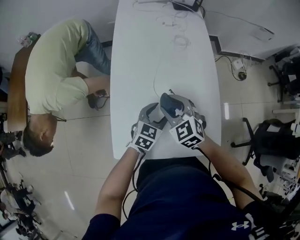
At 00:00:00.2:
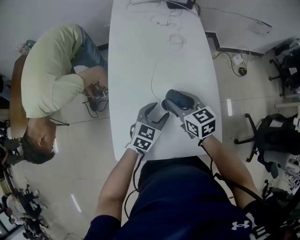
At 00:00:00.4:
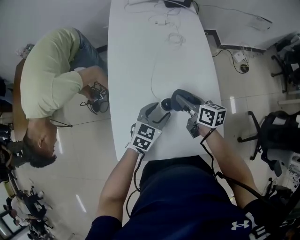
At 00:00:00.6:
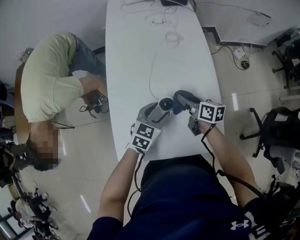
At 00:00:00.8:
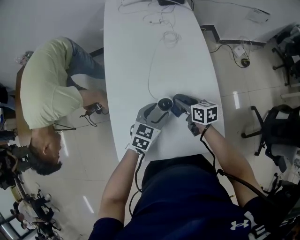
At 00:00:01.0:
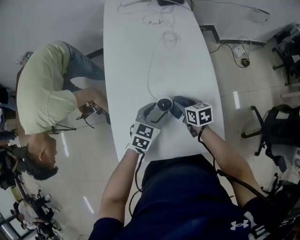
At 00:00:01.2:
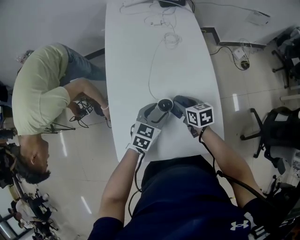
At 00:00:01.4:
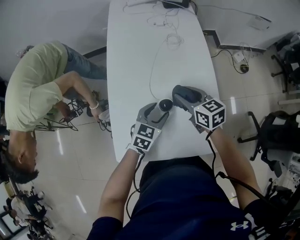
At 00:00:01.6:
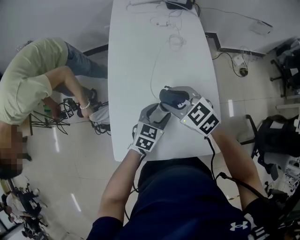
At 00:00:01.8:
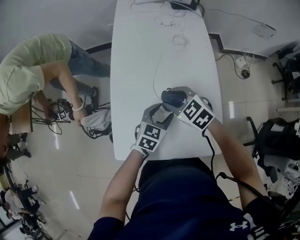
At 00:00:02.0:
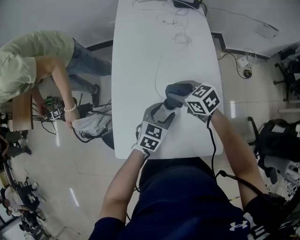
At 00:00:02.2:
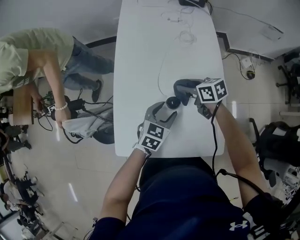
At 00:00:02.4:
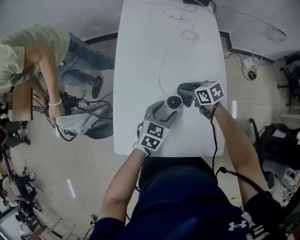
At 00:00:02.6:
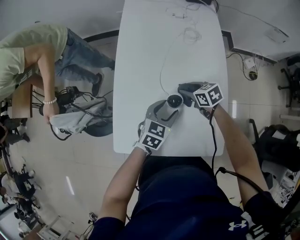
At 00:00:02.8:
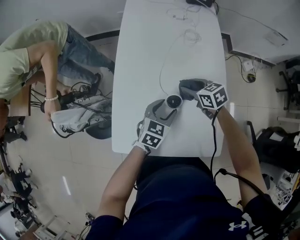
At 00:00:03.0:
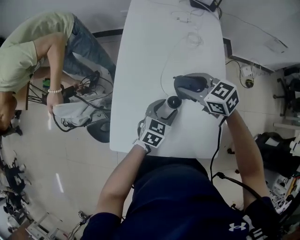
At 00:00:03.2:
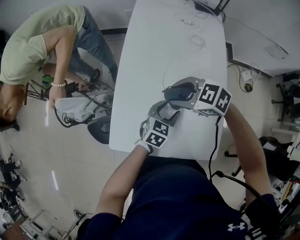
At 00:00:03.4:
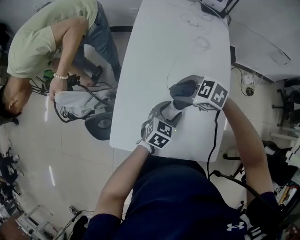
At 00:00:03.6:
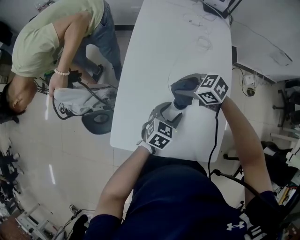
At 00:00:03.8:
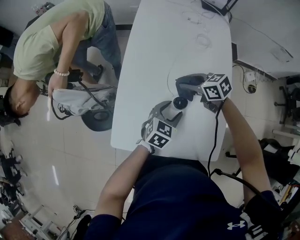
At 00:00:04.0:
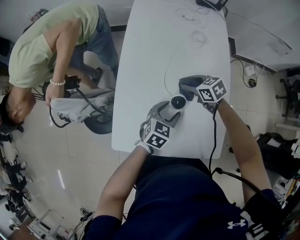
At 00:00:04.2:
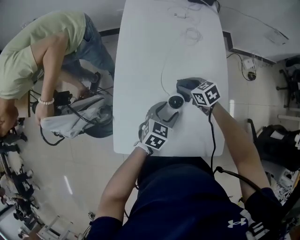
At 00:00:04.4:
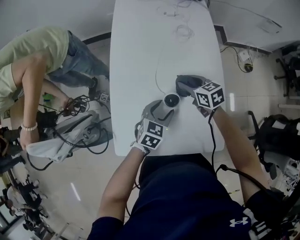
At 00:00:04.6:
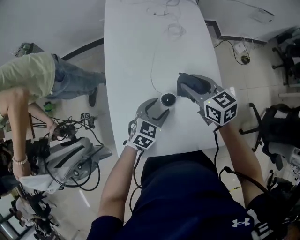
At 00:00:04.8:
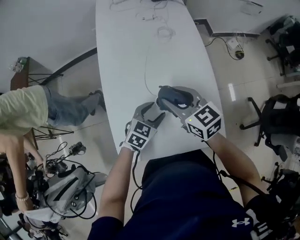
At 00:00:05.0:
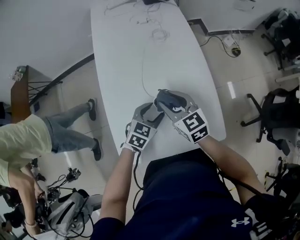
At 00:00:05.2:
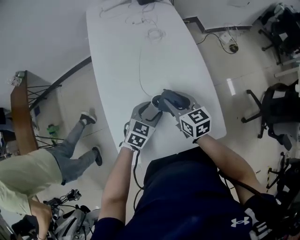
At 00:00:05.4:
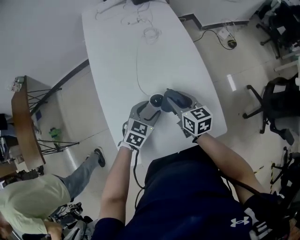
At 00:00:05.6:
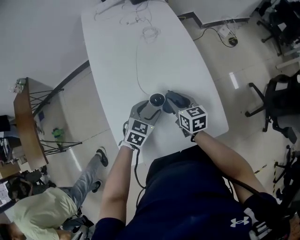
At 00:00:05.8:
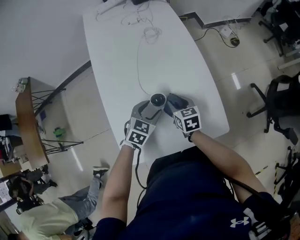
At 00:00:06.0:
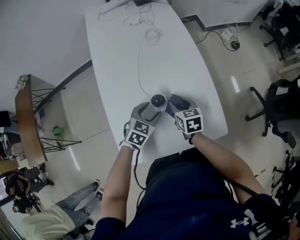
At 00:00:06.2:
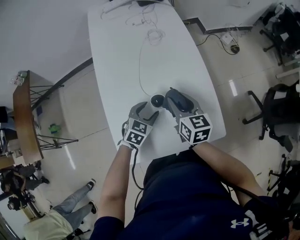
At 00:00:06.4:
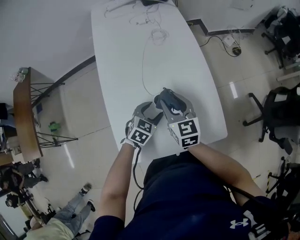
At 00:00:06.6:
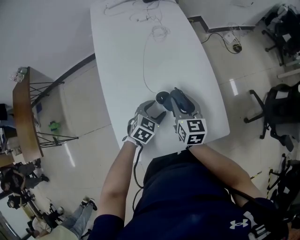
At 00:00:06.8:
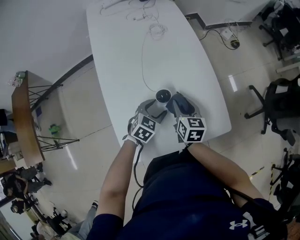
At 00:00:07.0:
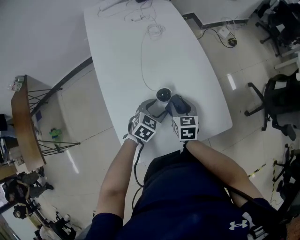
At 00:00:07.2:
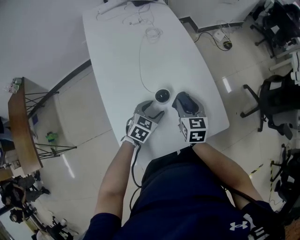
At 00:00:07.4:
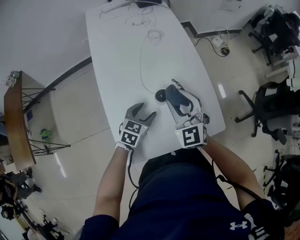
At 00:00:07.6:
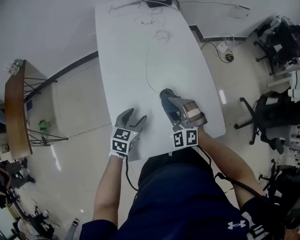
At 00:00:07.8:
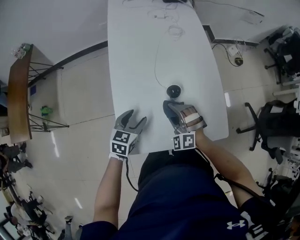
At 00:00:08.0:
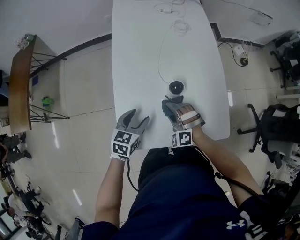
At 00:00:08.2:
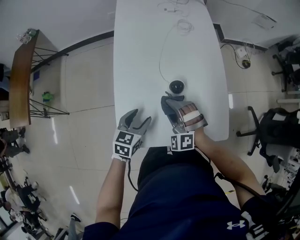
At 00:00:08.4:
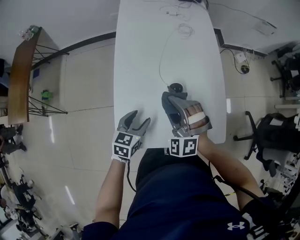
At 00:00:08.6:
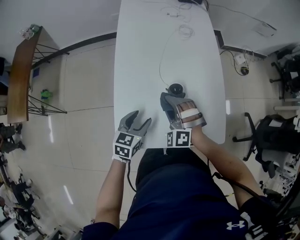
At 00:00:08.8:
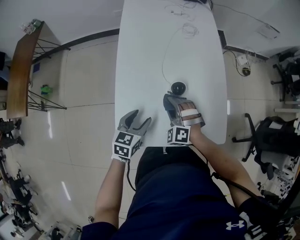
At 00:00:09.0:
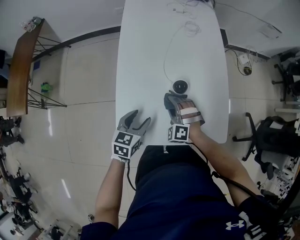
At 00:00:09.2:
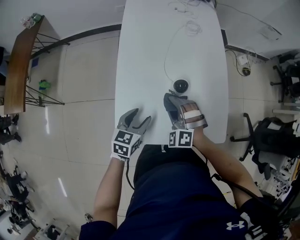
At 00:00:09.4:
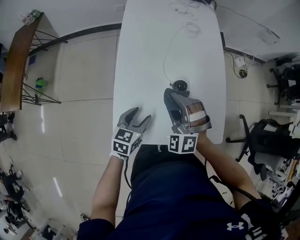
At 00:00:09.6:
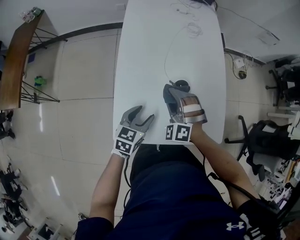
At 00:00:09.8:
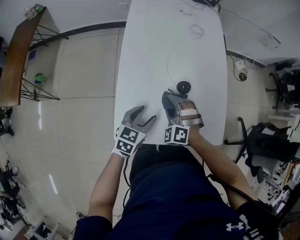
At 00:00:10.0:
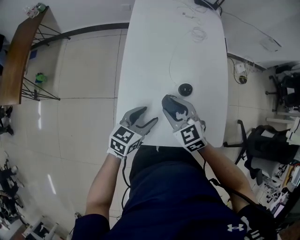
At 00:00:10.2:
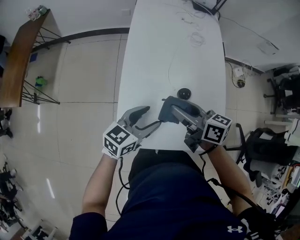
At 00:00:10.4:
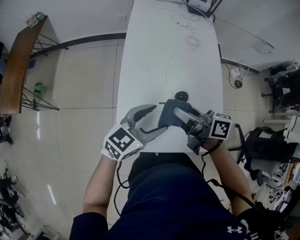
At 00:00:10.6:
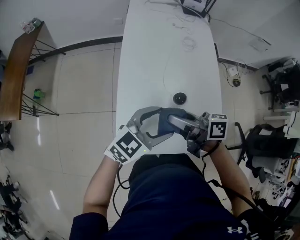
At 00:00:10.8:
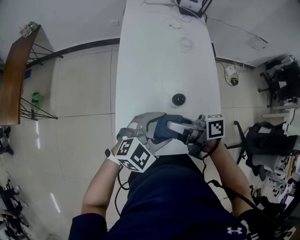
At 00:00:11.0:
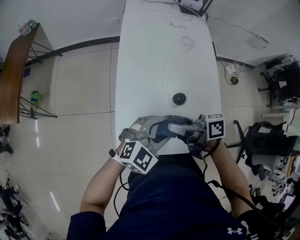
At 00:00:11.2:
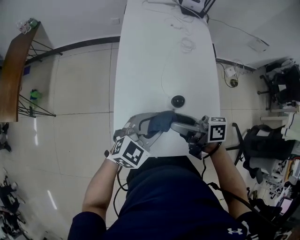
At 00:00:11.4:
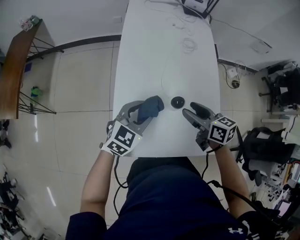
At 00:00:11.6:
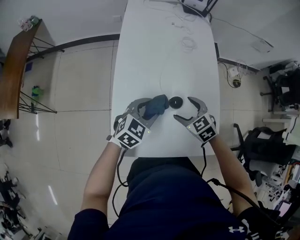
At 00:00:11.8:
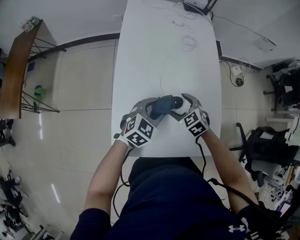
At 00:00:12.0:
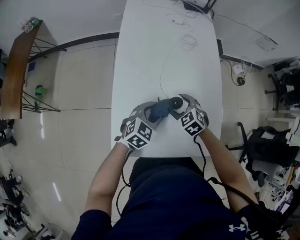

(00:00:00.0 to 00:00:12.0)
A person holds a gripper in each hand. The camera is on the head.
00:00:00.0 - 00:00:01.6: The right gripper travels downward and back again, about 15 cm each way.
00:00:01.6 - 00:00:03.0: The right gripper travels downward and back again, roughly 15 cm each way.
00:00:03.0 - 00:00:04.4: The right gripper is displaced downward by about 10 cm, and changes its angle by roughly 30 degrees.
00:00:04.4 - 00:00:06.0: The right gripper heads backward and to the right, covering approximately 10 cm, reaches about 15 cm upward, then returns, and rotates approximately 30 degrees.
00:00:06.0 - 00:00:07.6: The left gripper goes roughly 10 cm to the left and backward, and turns by about 20 degrees, while the right gripper goes up and down, approximately 15 cm each way, reversing 3 times, and rolls counterclockwise, seen from behind, by roughly 80 degrees.
00:00:07.6 - 00:00:09.0: The left gripper travels backward by some 5 cm, while the right gripper moves up and down over some 15 cm, changing direction 2 times, and changes its angle by about 20 degrees.
00:00:09.0 - 00:00:10.4: The right gripper swings up and down, about 20 cm each way, with 2 reversals, and rotates around the line of its fingers by about 100 degrees, clockwise from behind; the left gripper moves upward, approximately 15 cm, and turns by some 30 degrees.
00:00:10.4 - 00:00:12.0: The grippers both shift downward by some 15 cm. The left gripper rotates about 30 degrees, and closes up. The right gripper angles its fingers downward, by some 50 degrees, and opens.

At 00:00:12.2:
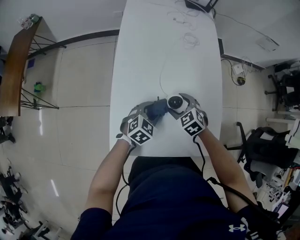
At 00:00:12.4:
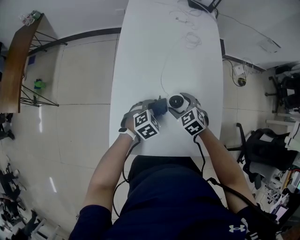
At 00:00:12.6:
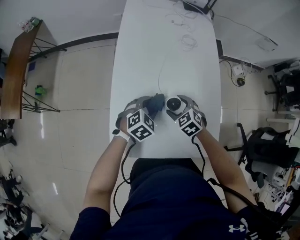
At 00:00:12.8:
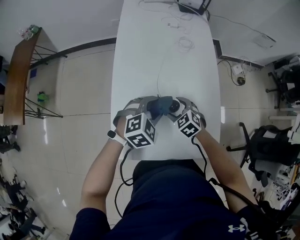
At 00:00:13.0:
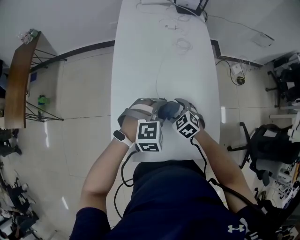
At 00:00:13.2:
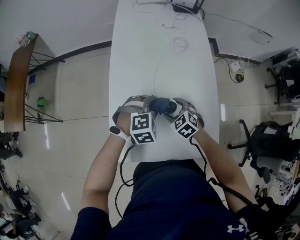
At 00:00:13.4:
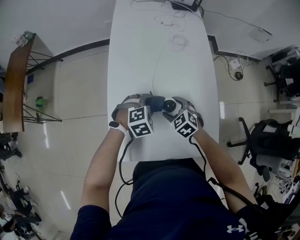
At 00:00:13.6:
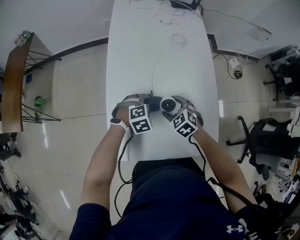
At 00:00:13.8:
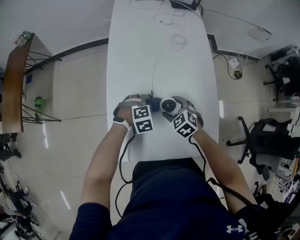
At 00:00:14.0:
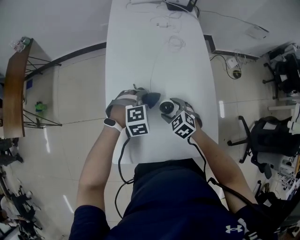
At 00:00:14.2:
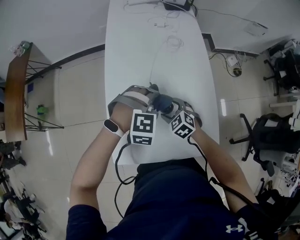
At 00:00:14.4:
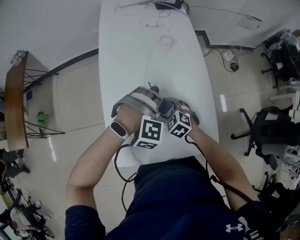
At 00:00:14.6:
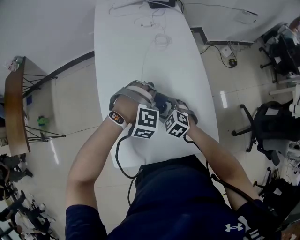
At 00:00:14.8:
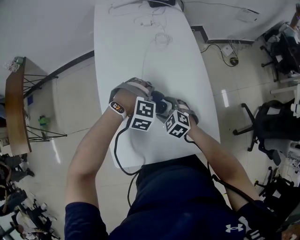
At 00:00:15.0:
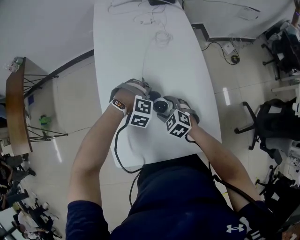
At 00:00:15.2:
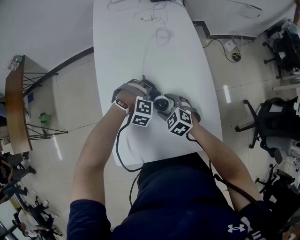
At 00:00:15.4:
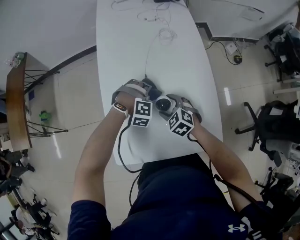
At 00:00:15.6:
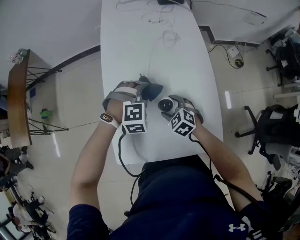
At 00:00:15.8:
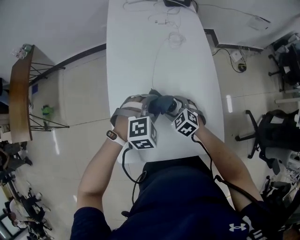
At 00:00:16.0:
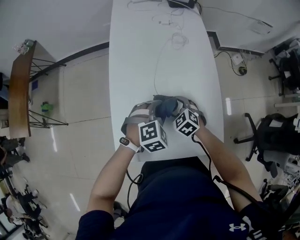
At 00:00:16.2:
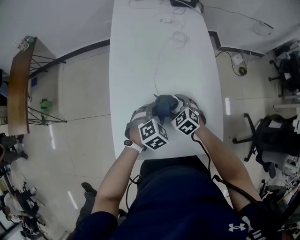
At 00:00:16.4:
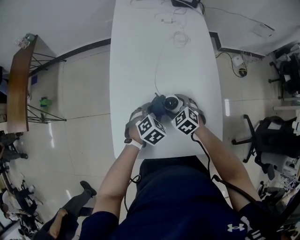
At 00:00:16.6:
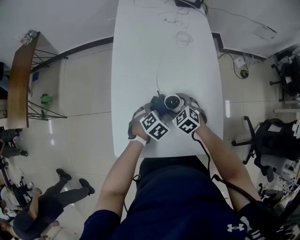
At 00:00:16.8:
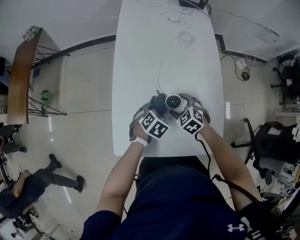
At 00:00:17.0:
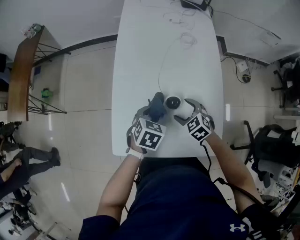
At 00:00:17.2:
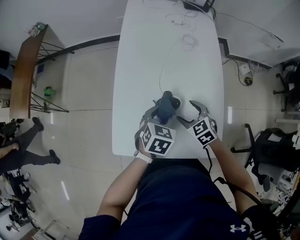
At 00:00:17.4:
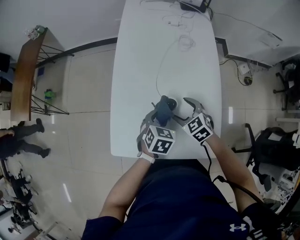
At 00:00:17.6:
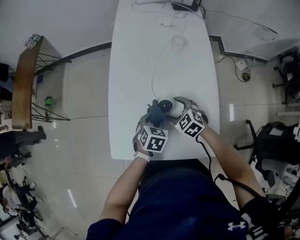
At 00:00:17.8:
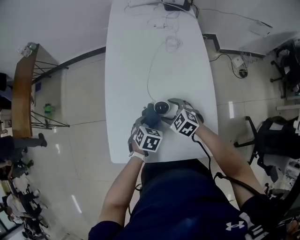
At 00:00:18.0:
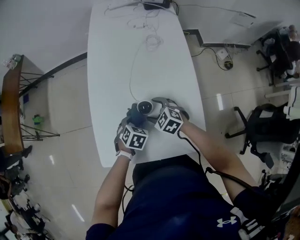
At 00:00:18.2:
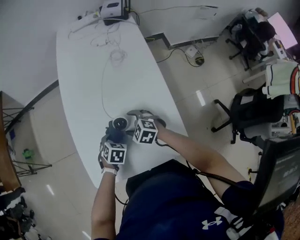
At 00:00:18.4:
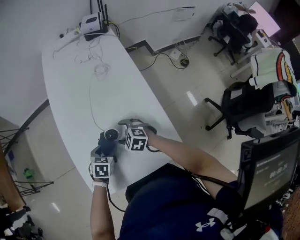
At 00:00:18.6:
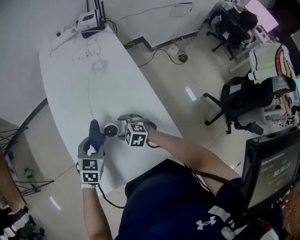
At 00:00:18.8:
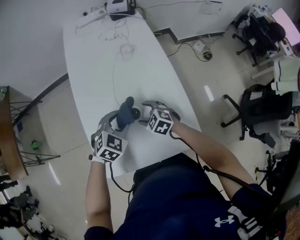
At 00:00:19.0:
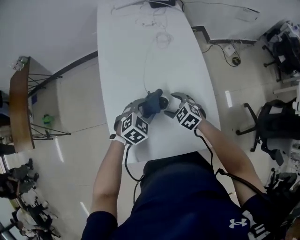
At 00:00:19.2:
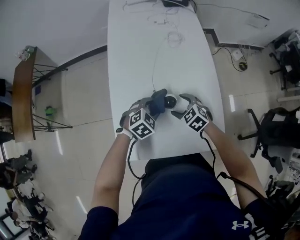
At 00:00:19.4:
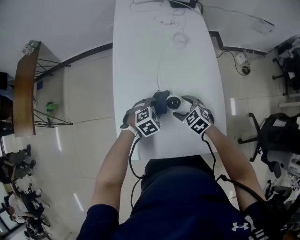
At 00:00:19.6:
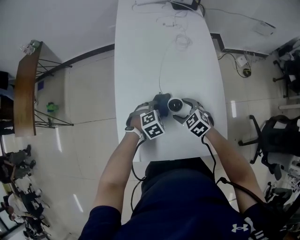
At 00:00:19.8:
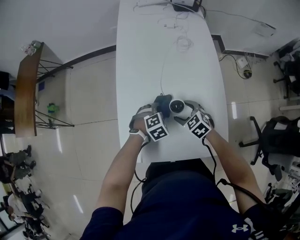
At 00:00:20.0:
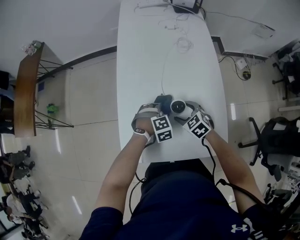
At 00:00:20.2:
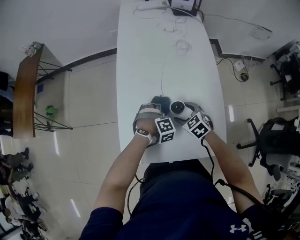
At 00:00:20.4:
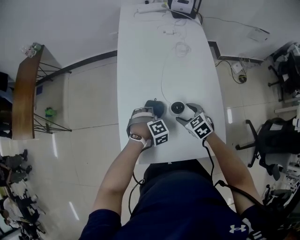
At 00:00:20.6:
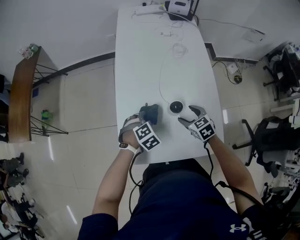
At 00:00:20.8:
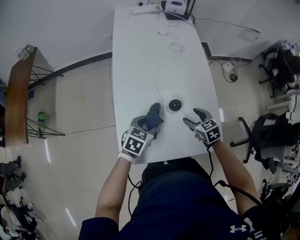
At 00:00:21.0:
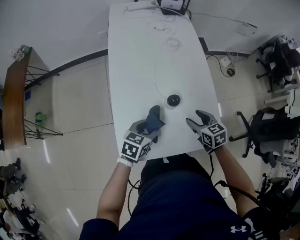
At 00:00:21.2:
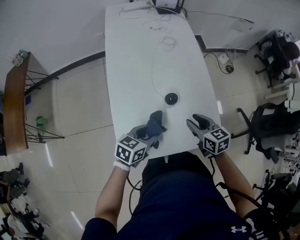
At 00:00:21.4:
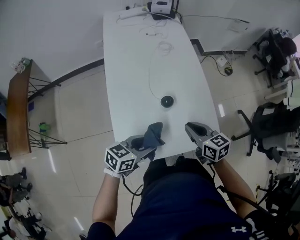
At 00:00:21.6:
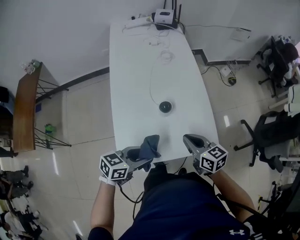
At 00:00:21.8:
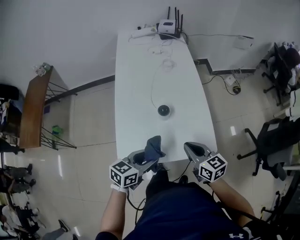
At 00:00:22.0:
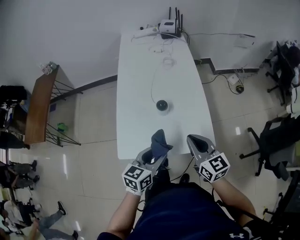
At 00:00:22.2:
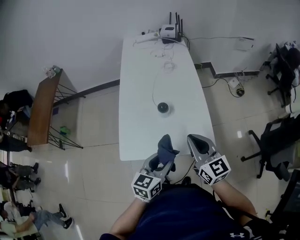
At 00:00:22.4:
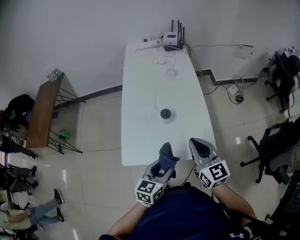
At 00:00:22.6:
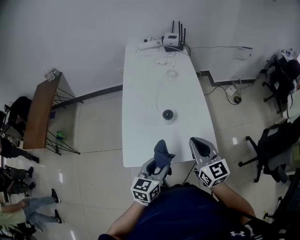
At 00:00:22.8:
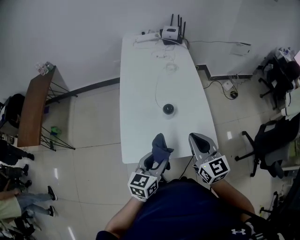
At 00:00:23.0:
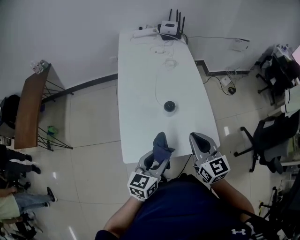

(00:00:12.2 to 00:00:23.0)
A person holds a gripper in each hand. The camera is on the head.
00:00:12.2 - 00:00:13.8: The left gripper moves roughly 10 cm upward and comes back, and turns by some 40 degrees.
00:00:13.8 - 00:00:15.2: The left gripper reaches roughly 15 cm upward, then returns, and twists roughly 40 degrees clockwise, seen from behind.
00:00:15.2 - 00:00:16.8: The left gripper heads backward, covering some 5 cm, moves approximately 15 cm upward and comes back, and rolls counterclockwise, seen from behind, by some 80 degrees.
00:00:16.8 - 00:00:18.4: The left gripper moves about 10 cm upward and comes back.
00:00:18.4 - 00:00:20.0: The left gripper moves some 10 cm upward and comes back, and rolls clockwise, seen from behind, by about 50 degrees.
00:00:20.0 - 00:00:21.4: The two grippers go roughly 15 cm upward. The right gripper swivels approximately 50 degrees, and closes. Meanwhile the left gripper tilts its fingers about 40 degrees upward.
00:00:21.4 - 00:00:23.0: The right gripper shifts approximately 15 cm upward and backward, and changes its angle by approximately 30 degrees, while the left gripper moves upward and backward, roughly 10 cm, goes to the right and returns, roughly 10 cm each way, and turns by roughly 30 degrees.
